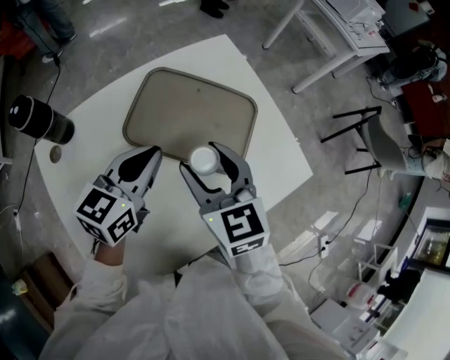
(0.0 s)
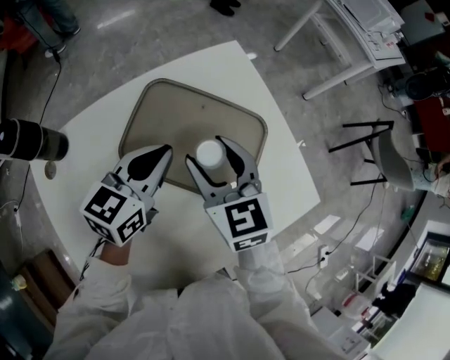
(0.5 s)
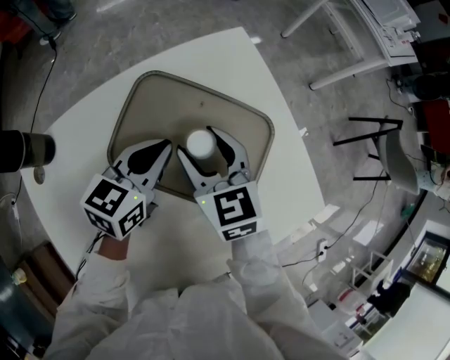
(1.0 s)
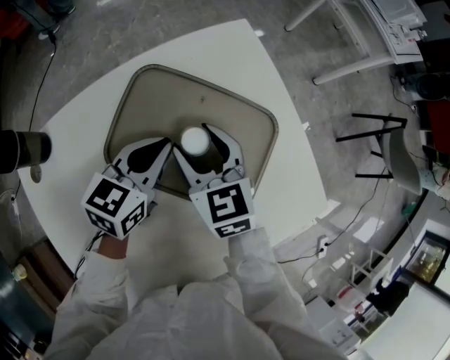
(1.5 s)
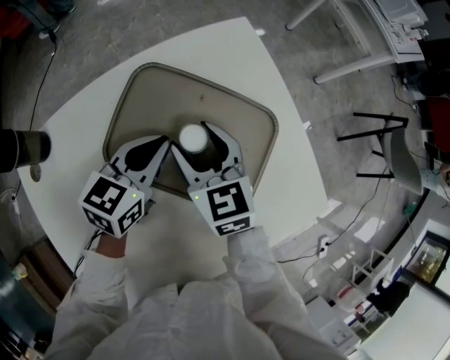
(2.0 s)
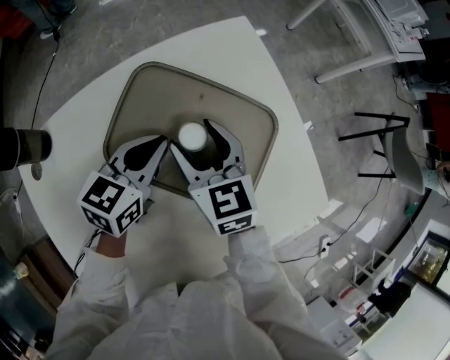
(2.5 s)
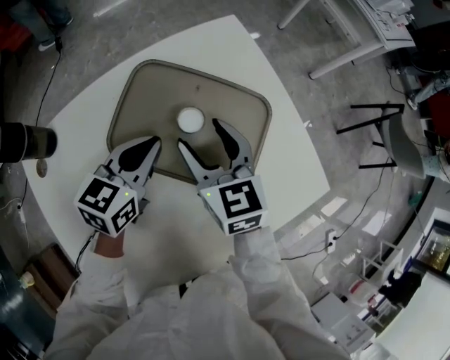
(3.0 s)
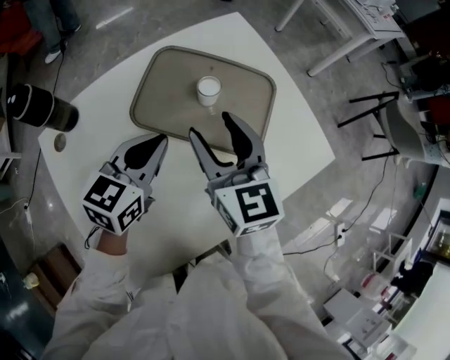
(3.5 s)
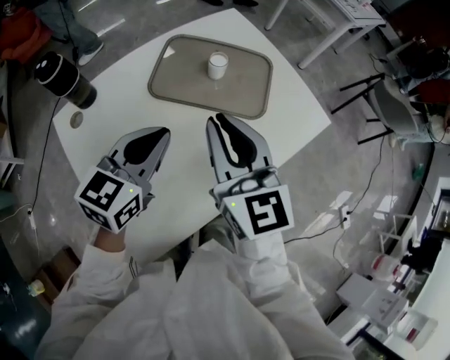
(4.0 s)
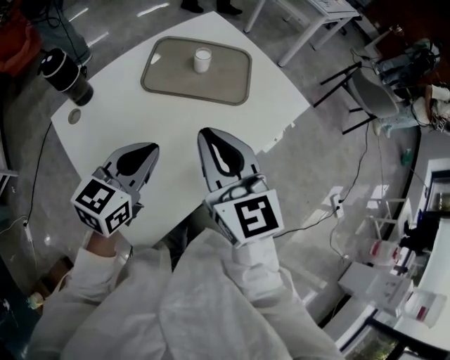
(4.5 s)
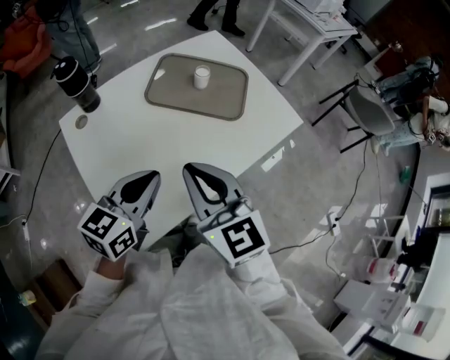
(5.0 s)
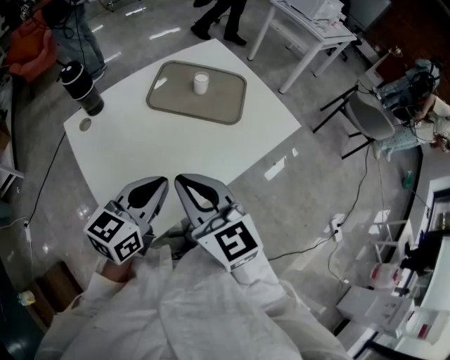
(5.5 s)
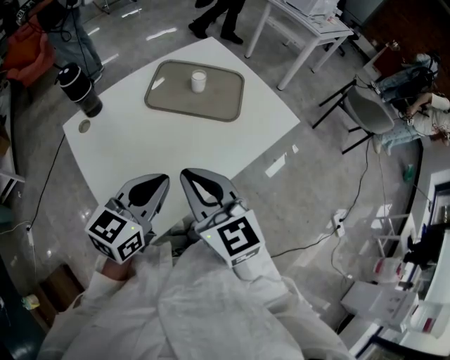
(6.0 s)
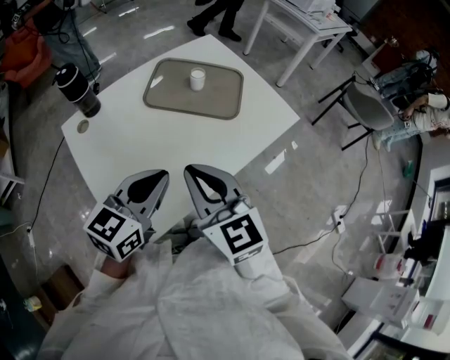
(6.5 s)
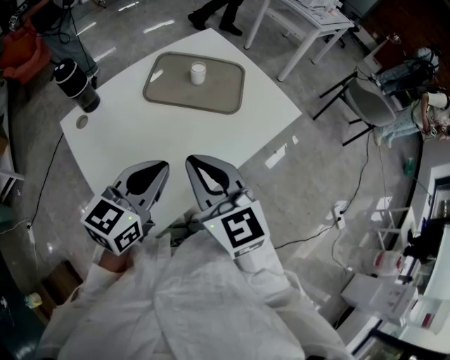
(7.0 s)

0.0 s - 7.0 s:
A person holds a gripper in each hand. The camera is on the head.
0.0 s - 2.0 s: The left gripper goes roughly 15 cm downward and forward; the right gripper goes about 20 cm forward and downward.
2.0 s - 3.5 s: Both grippers move backward and upward, about 15 cm.
3.5 s - 5.0 s: The two grippers go some 25 cm backward. The right gripper closes its fingers.
5.0 s - 7.0 s: There are only small adjustments of the grippers.

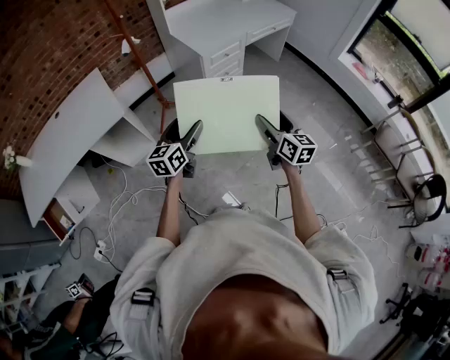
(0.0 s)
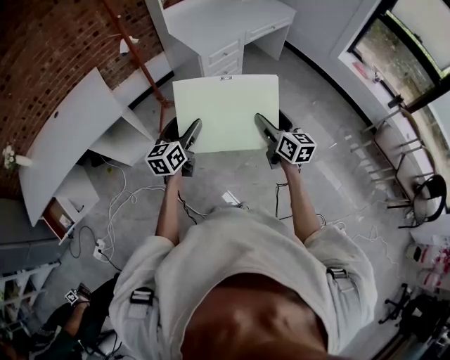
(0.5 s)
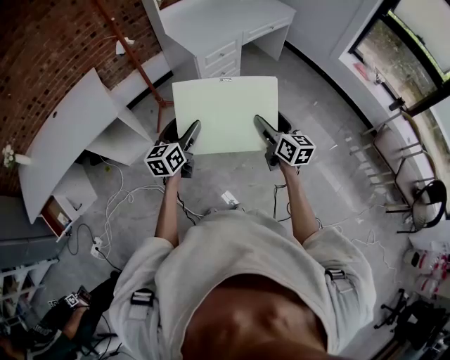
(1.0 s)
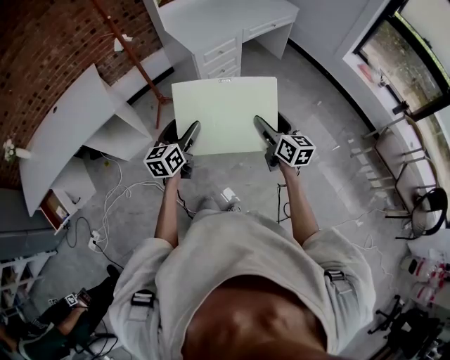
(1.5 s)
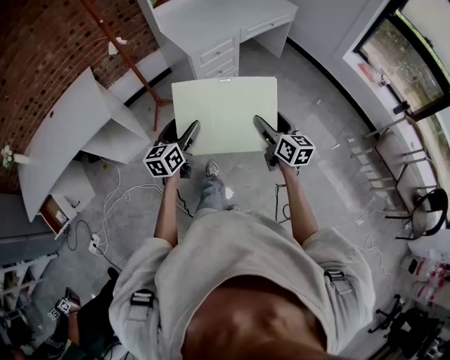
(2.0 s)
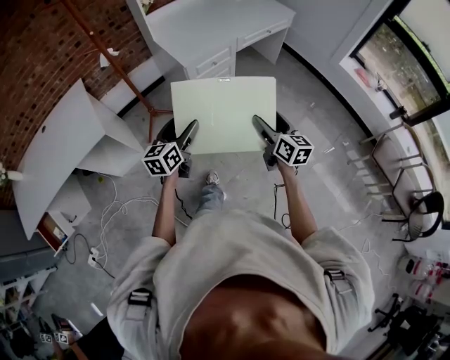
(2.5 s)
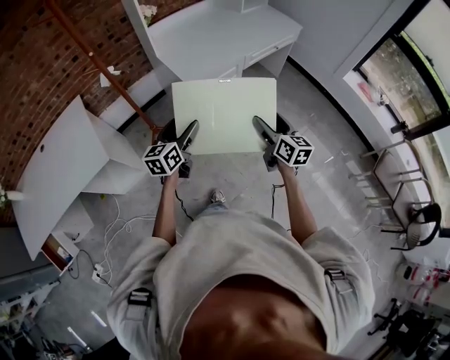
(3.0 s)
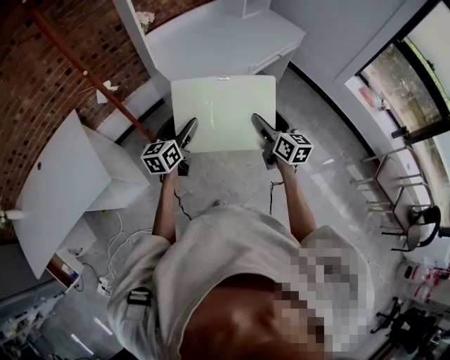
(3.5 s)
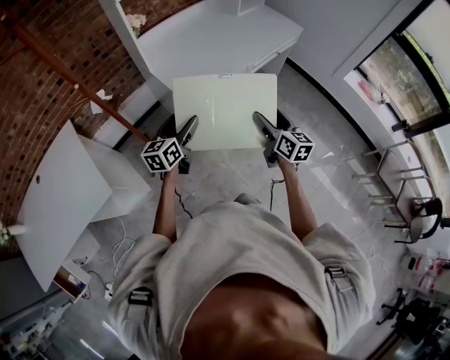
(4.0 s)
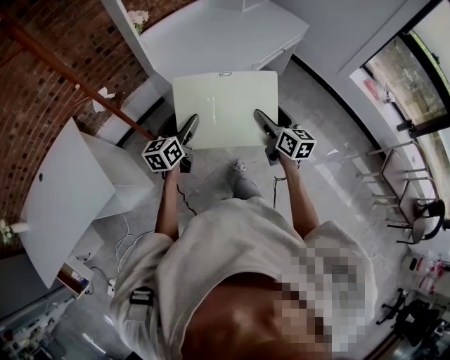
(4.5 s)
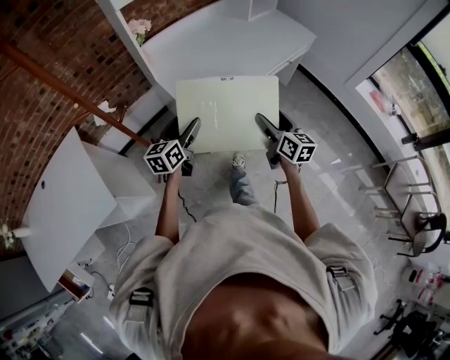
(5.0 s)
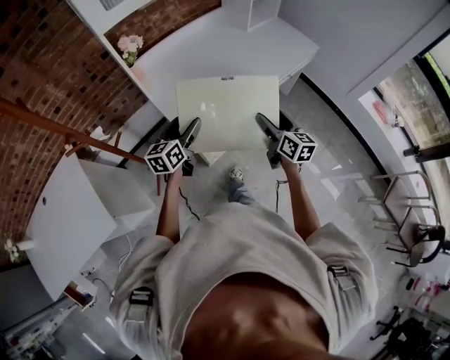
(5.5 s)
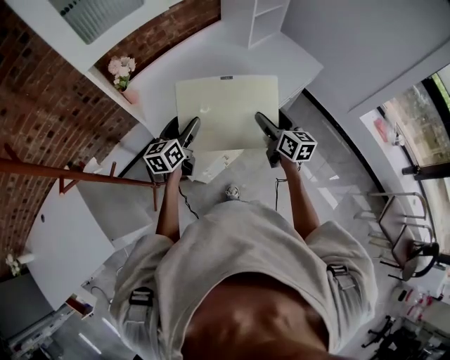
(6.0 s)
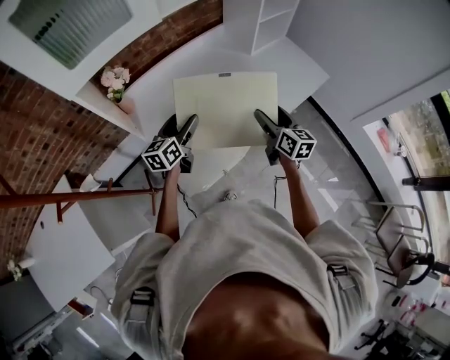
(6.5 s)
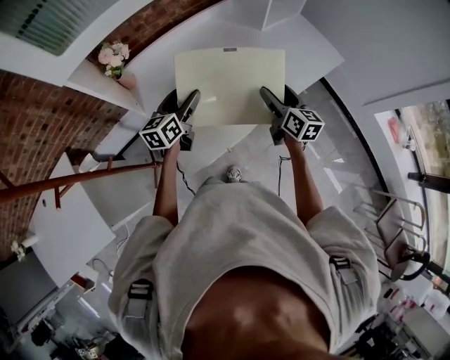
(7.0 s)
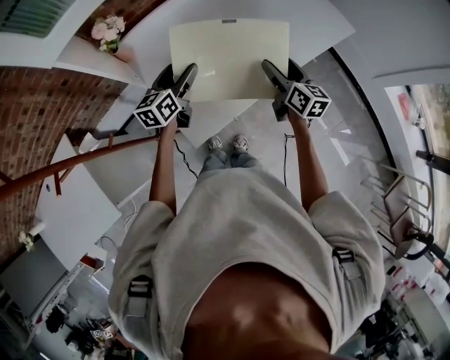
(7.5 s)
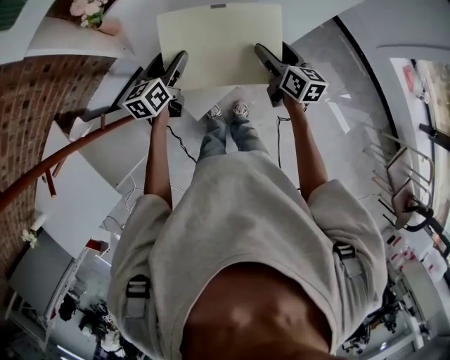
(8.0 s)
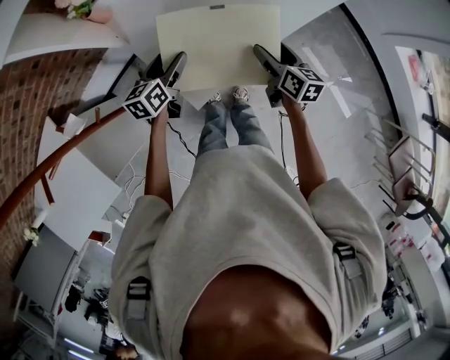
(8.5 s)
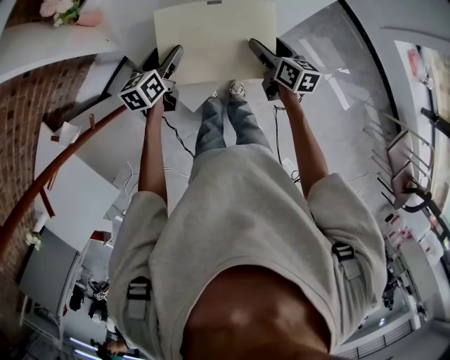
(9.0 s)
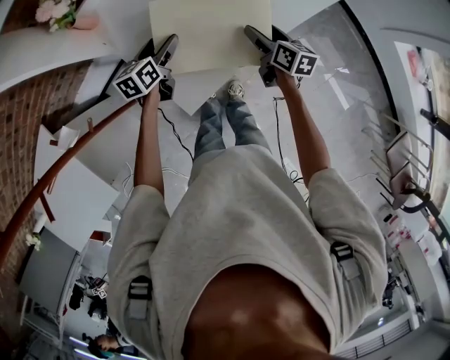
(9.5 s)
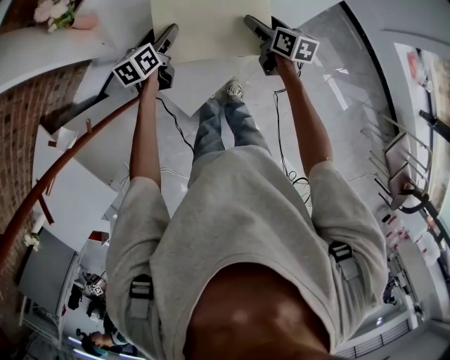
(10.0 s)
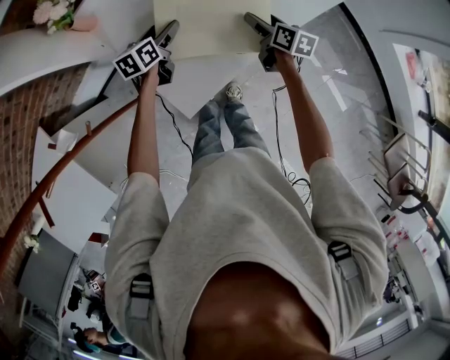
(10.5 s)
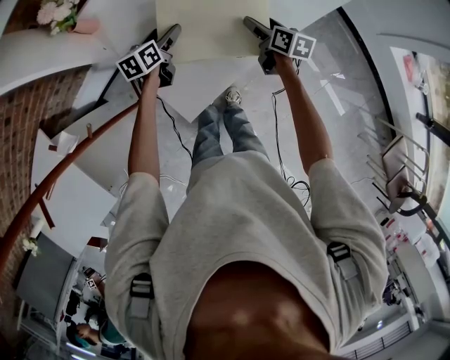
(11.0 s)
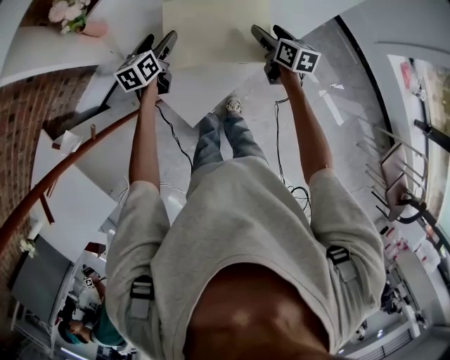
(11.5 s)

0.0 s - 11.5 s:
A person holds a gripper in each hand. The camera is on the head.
0.0 s - 2.0 s: Both grippers travel together to the right and forward, roughly 10 cm.
2.0 s - 4.0 s: Both grippers move forward, about 40 cm.
4.0 s - 6.0 s: Both grippers move forward, approximately 35 cm.
6.0 s - 7.5 s: The two grippers go some 10 cm forward.
7.5 s - 9.5 s: Both grippers move downward, about 15 cm.
9.5 s - 11.5 s: The grippers both shift forward by some 5 cm.

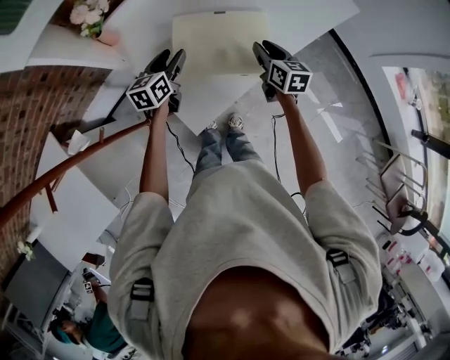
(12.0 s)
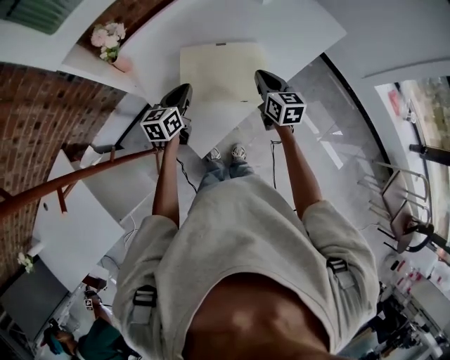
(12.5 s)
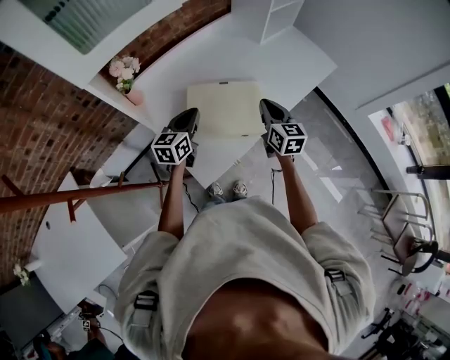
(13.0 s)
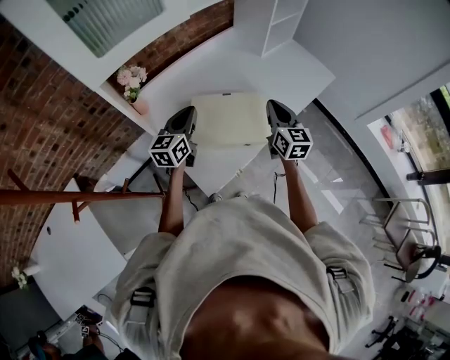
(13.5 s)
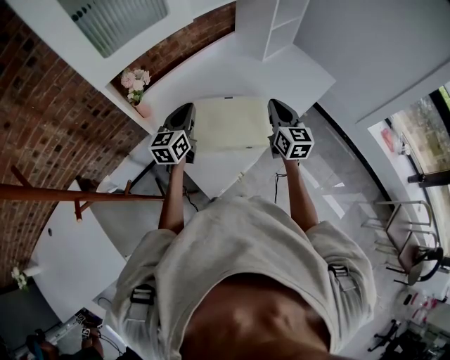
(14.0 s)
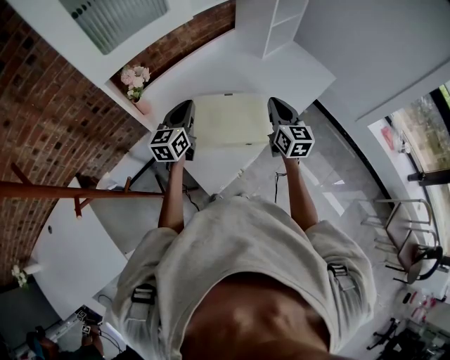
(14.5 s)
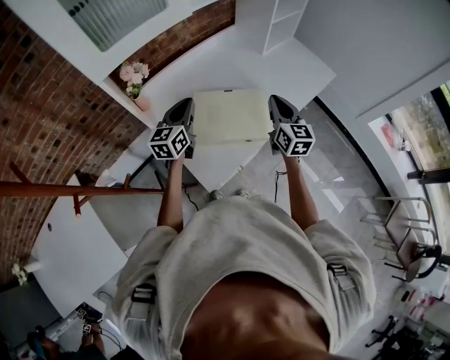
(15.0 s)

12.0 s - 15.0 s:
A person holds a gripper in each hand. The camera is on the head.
12.0 s - 13.5 s: The two grippers go about 15 cm upward. The right gripper turns by approximately 20 degrees. The left gripper changes its angle by about 20 degrees, and closes.
13.5 s - 15.0 s: There are only small adjustments of the grippers.

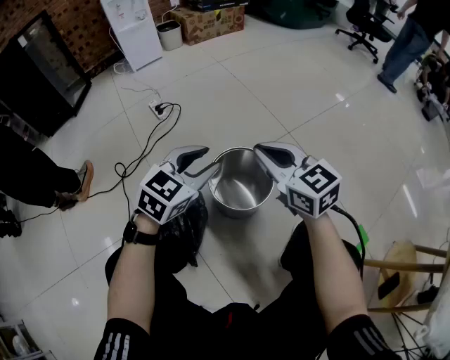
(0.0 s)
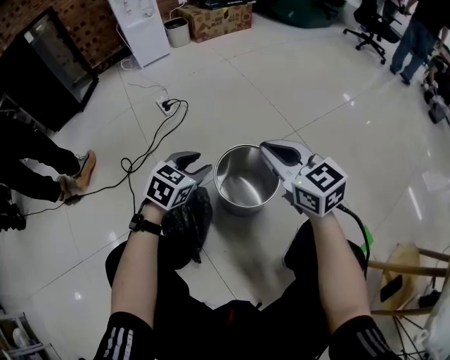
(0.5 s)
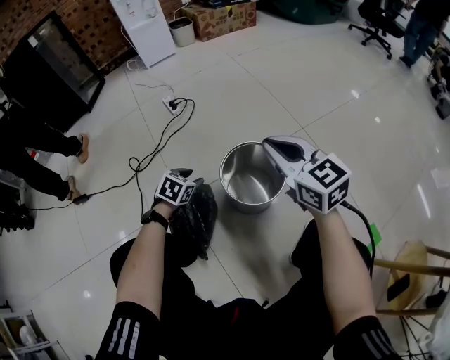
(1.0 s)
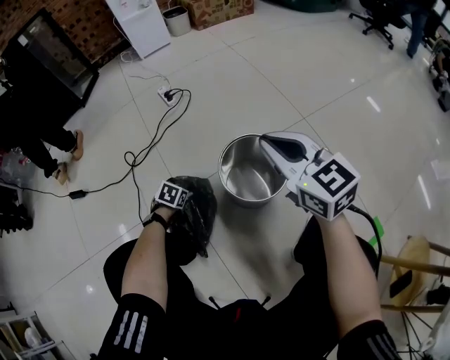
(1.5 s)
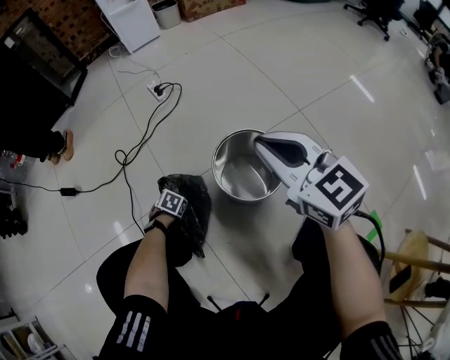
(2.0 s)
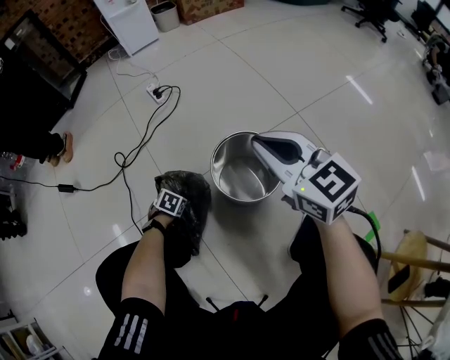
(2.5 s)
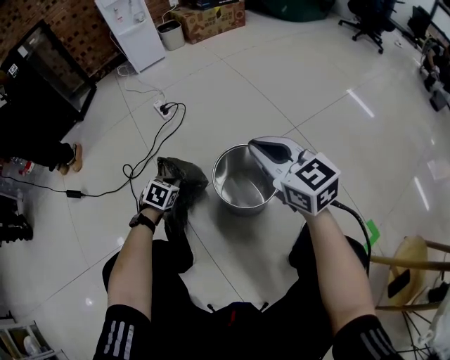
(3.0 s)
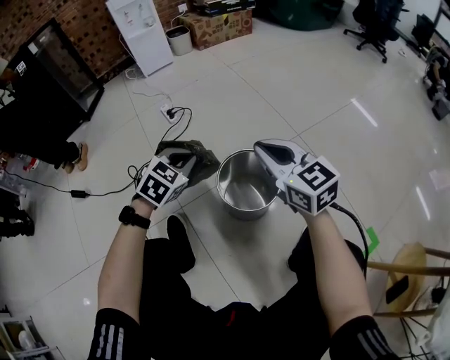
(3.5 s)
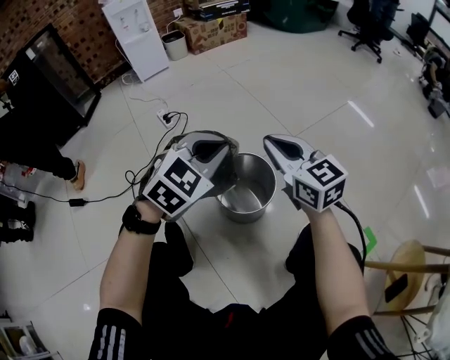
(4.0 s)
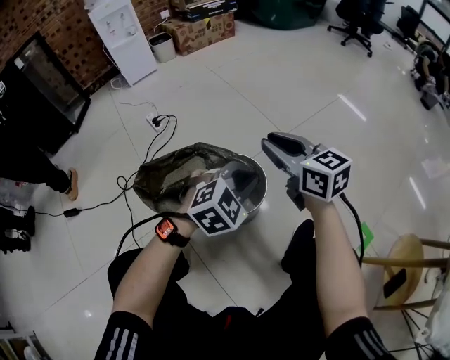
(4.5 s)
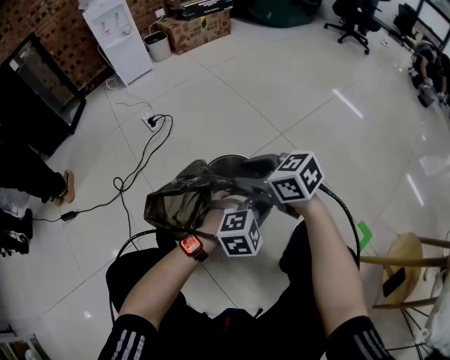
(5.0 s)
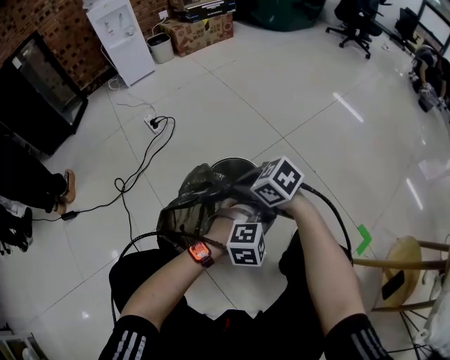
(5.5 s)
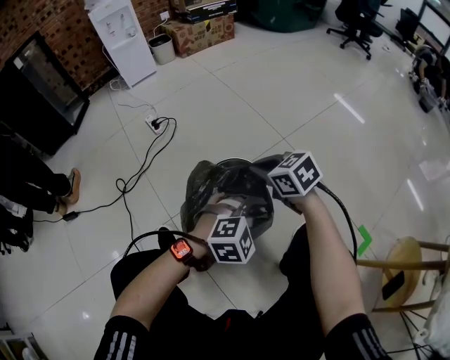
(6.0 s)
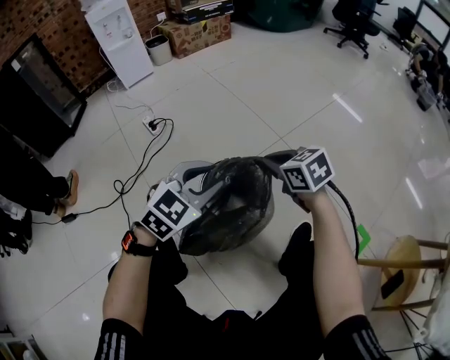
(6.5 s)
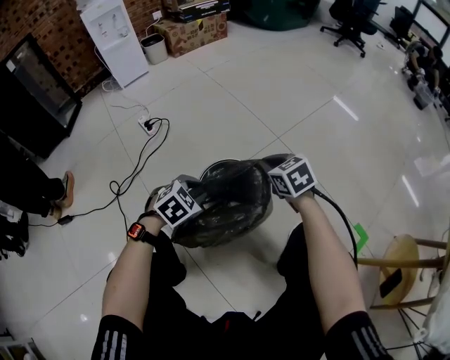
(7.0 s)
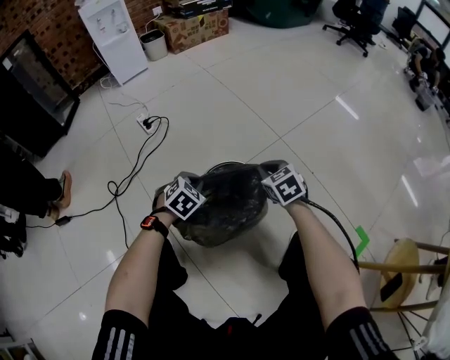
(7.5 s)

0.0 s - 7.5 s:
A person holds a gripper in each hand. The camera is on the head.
0.0 s - 2.0 s: The left gripper shifts roughly 40 cm downward, tilts its fingers approximately 60 degrees downward, and opens.
2.0 s - 4.0 s: The left gripper heads upward, covering roughly 50 cm, points its fingers roughly 50 degrees further upward, and closes up. Meanwhile the right gripper moves approximately 5 cm.
4.0 s - 5.5 s: The left gripper moves some 30 cm, and swivels approximately 30 degrees; the right gripper travels downward by about 15 cm, angles its fingers downward, by roughly 30 degrees, and opens and closes again.
5.5 s - 7.5 s: The left gripper moves about 15 cm upward and comes back, swivels roughly 40 degrees, and opens, then closes once more. Meanwhile the right gripper shifts by roughly 15 cm, and rotates roughly 30 degrees.
